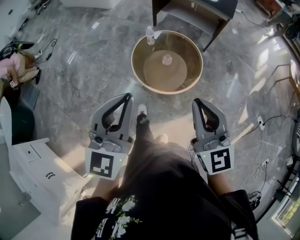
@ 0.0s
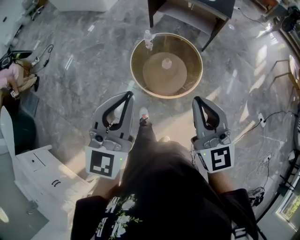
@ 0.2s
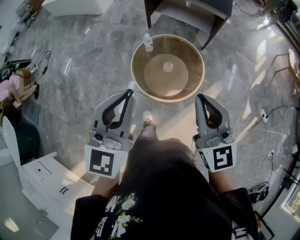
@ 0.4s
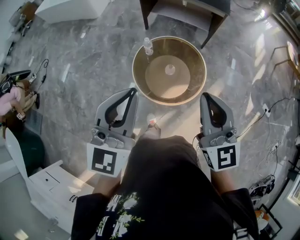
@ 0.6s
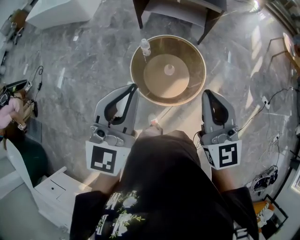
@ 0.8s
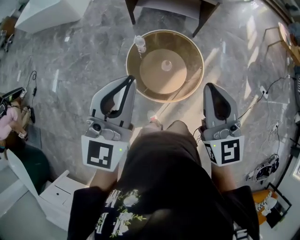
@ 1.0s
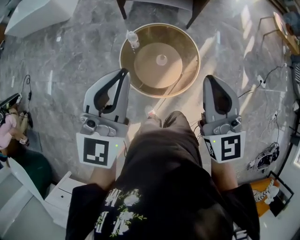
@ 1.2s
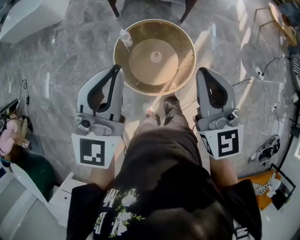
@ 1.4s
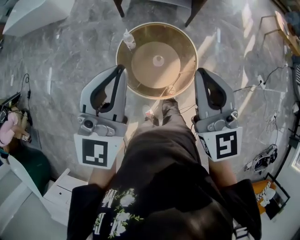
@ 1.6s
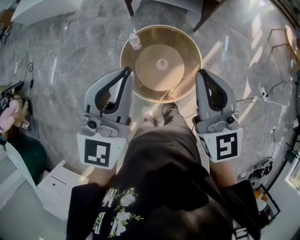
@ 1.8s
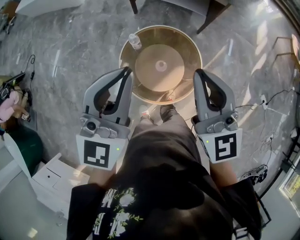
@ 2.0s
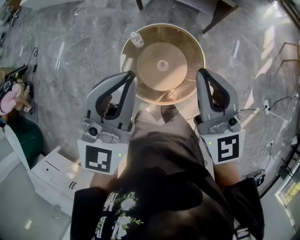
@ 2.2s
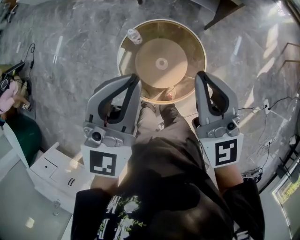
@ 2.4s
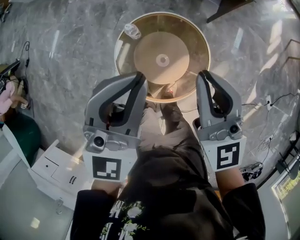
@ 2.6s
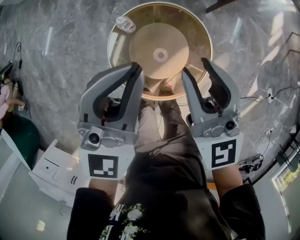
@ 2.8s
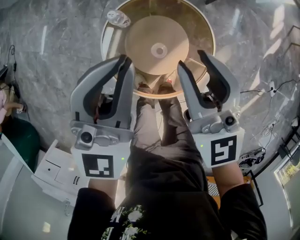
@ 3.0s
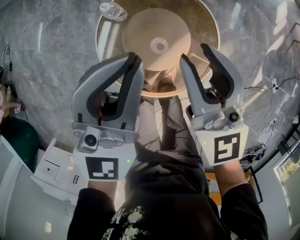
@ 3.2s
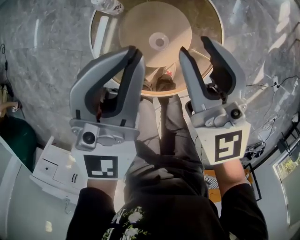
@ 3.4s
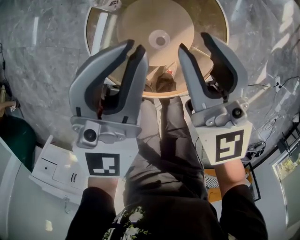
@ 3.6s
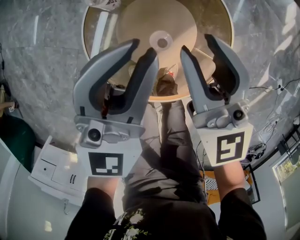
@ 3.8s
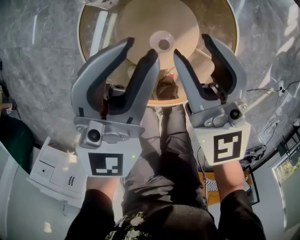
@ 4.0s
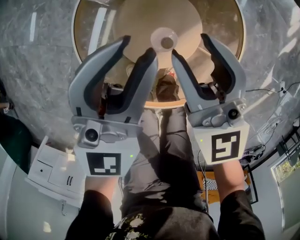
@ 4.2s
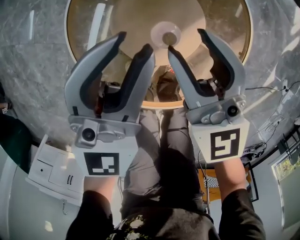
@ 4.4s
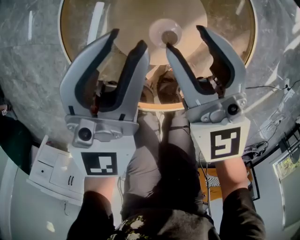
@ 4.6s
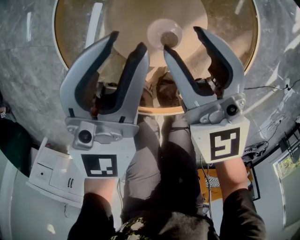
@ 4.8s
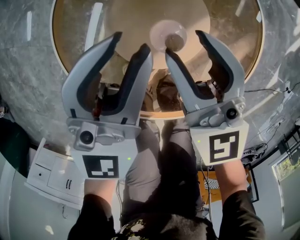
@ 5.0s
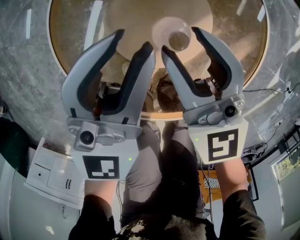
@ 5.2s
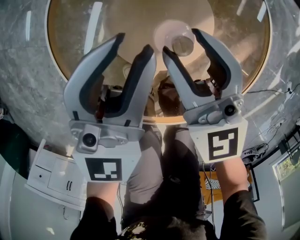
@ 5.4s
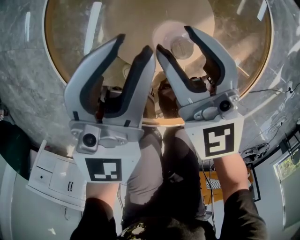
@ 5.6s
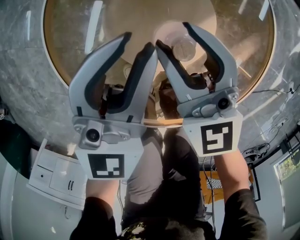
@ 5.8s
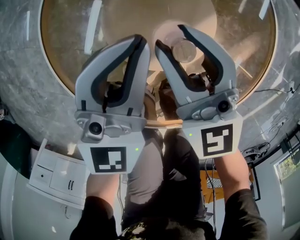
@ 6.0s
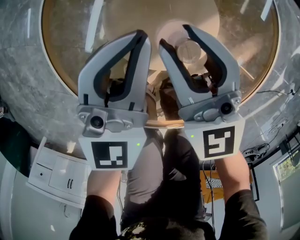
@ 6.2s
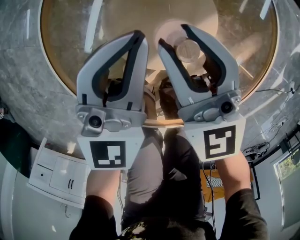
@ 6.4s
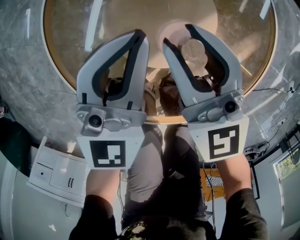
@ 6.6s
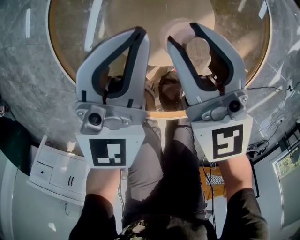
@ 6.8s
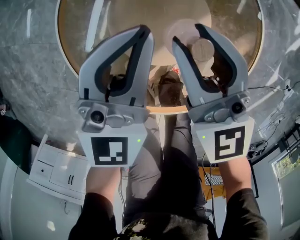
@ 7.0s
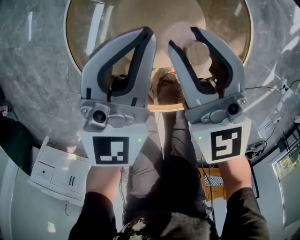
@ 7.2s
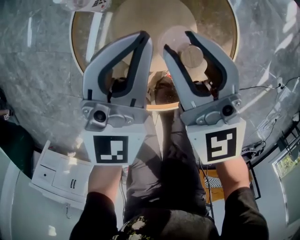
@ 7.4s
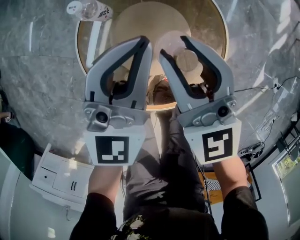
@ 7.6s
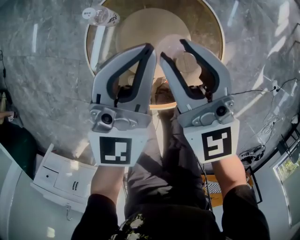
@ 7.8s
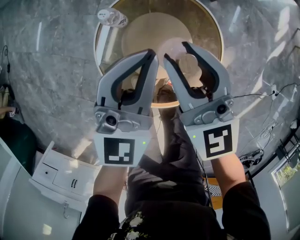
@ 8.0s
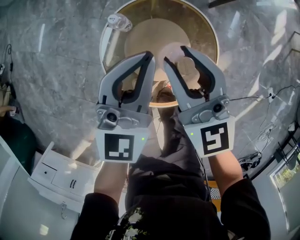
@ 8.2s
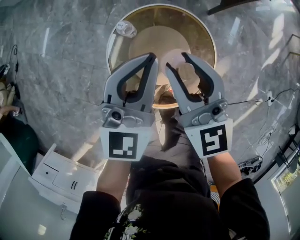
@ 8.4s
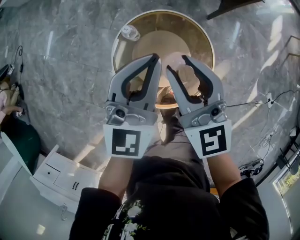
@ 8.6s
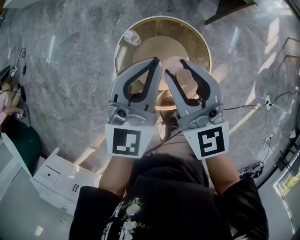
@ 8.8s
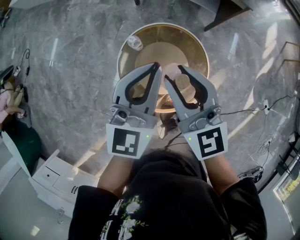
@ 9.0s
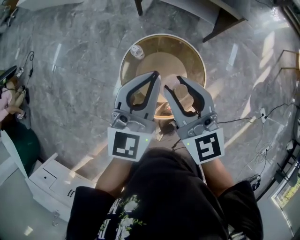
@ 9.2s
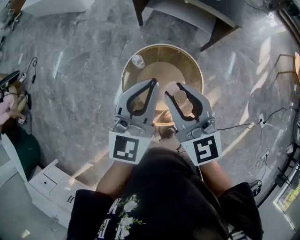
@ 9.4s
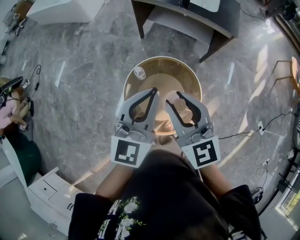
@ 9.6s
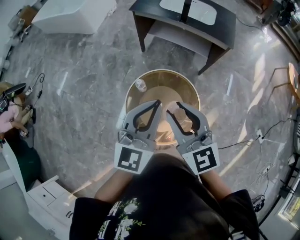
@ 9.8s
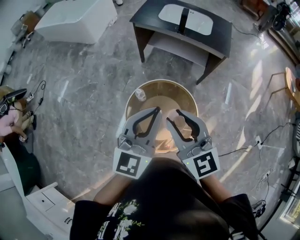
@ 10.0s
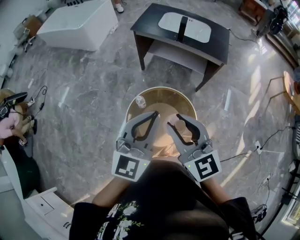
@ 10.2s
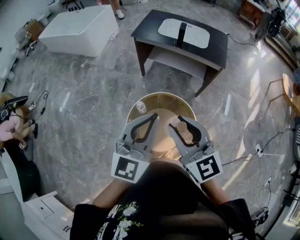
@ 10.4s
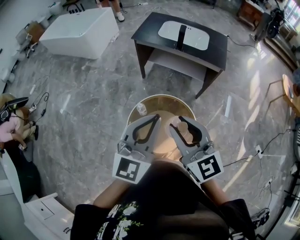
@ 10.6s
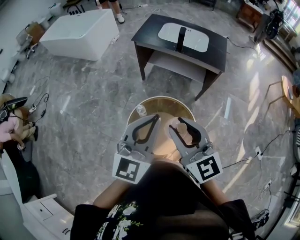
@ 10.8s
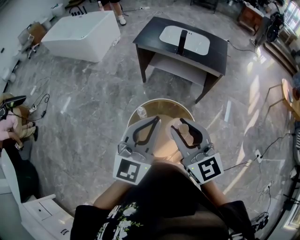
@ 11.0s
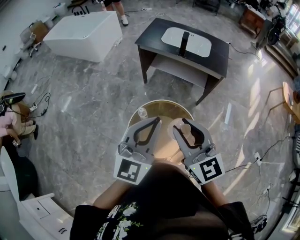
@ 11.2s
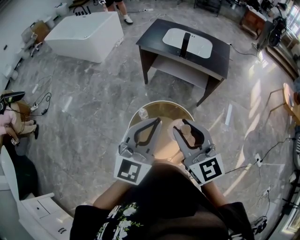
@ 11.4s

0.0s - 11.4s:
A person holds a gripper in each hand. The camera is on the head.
0.0s - 1.4s: The two grippers go about 30 cm forward. The right gripper turns by approximately 20 degrees, while the left gripper swivels some 20 degrees.
1.4s - 2.8s: The left gripper goes about 25 cm forward, downward and to the right. The right gripper is displaced forward and downward by about 25 cm, and opens its fingers.
2.8s - 4.2s: The two grippers go some 35 cm downward. The left gripper opens its fingers.
4.2s - 5.6s: The two grippers go some 10 cm downward.
5.6s - 7.2s: The right gripper heads upward, covering approximately 10 cm. The left gripper travels upward by about 10 cm, and closes.
7.2s - 8.6s: Both grippers move upward, roughly 35 cm.
8.6s - 10.0s: The grippers both shift upward and backward by some 25 cm.
10.0s - 11.4s: The grippers move only a little.

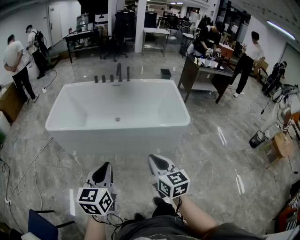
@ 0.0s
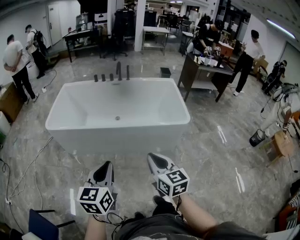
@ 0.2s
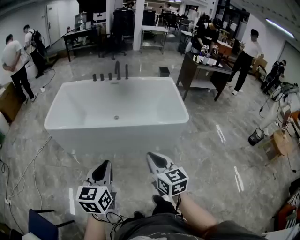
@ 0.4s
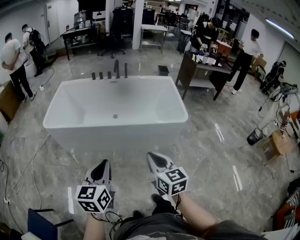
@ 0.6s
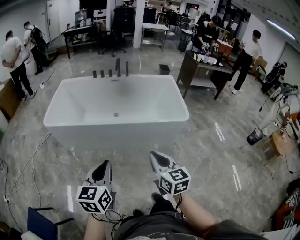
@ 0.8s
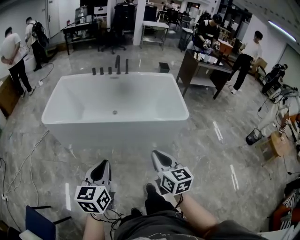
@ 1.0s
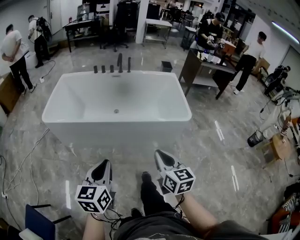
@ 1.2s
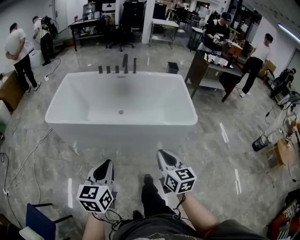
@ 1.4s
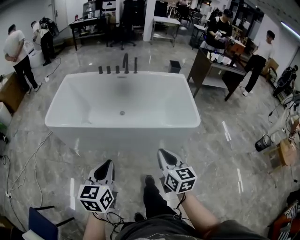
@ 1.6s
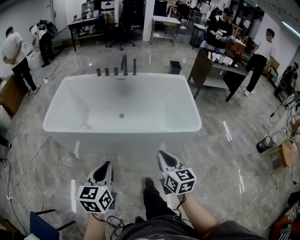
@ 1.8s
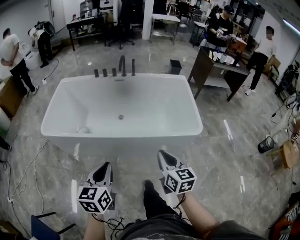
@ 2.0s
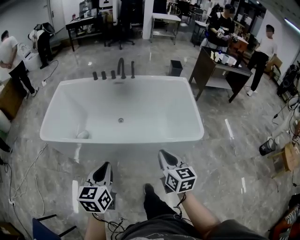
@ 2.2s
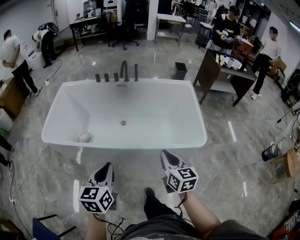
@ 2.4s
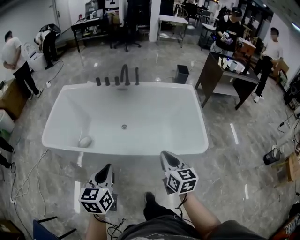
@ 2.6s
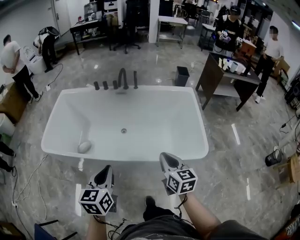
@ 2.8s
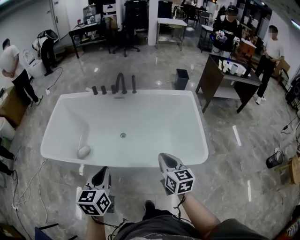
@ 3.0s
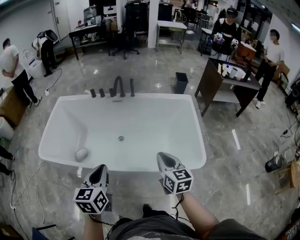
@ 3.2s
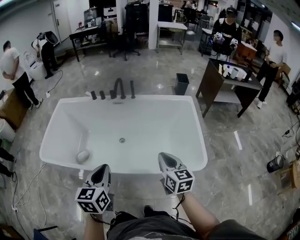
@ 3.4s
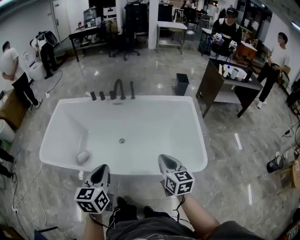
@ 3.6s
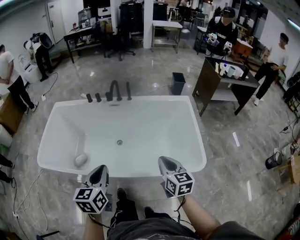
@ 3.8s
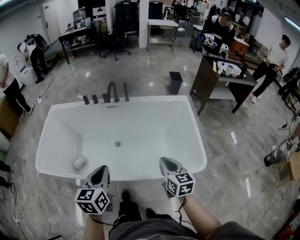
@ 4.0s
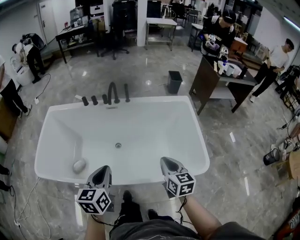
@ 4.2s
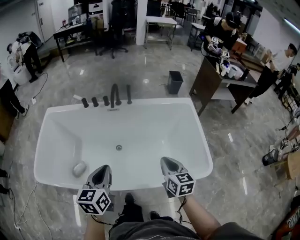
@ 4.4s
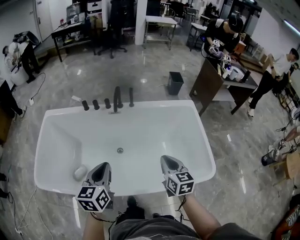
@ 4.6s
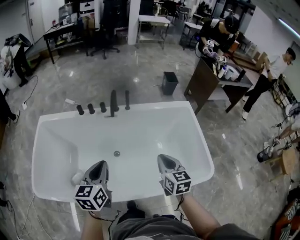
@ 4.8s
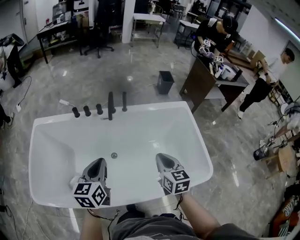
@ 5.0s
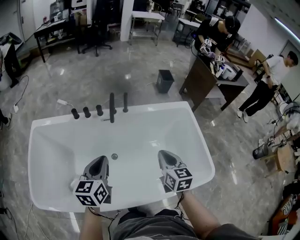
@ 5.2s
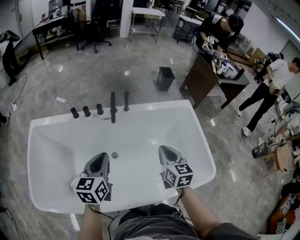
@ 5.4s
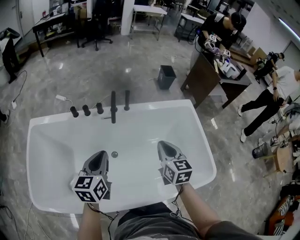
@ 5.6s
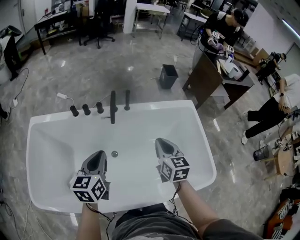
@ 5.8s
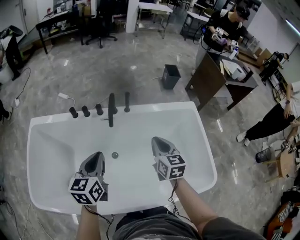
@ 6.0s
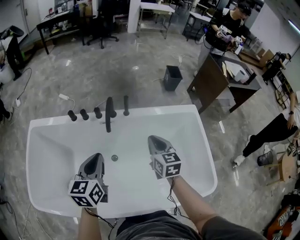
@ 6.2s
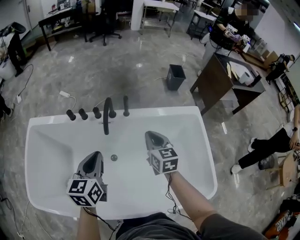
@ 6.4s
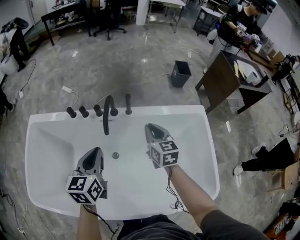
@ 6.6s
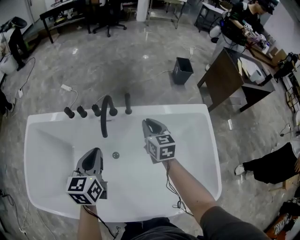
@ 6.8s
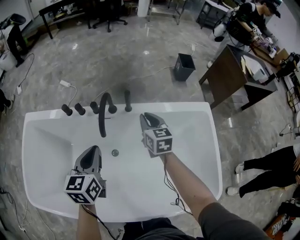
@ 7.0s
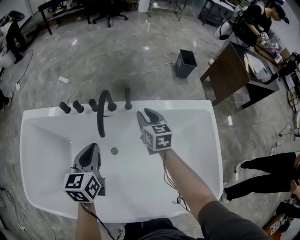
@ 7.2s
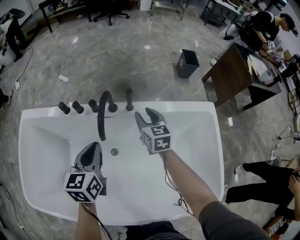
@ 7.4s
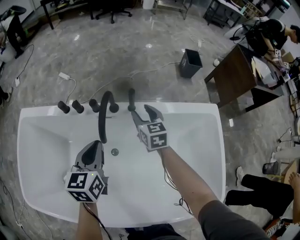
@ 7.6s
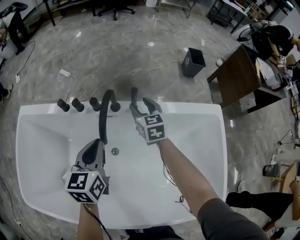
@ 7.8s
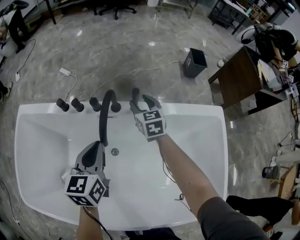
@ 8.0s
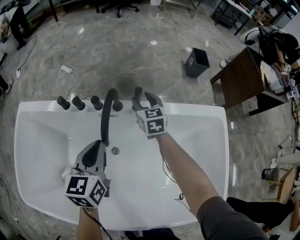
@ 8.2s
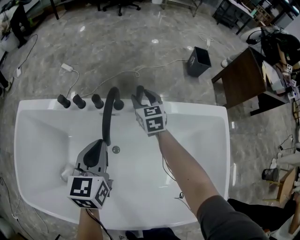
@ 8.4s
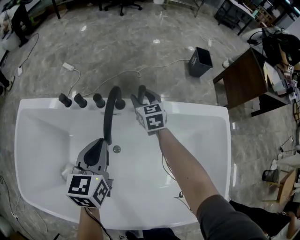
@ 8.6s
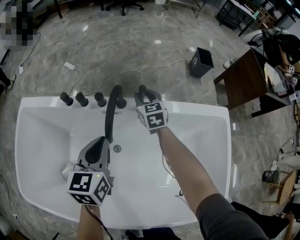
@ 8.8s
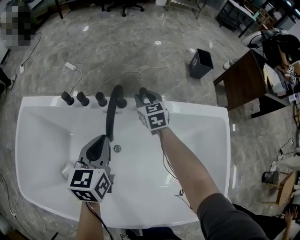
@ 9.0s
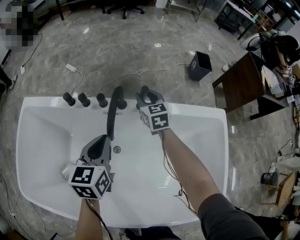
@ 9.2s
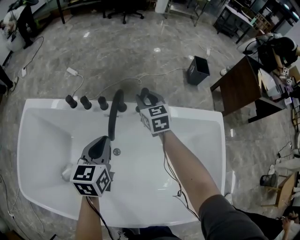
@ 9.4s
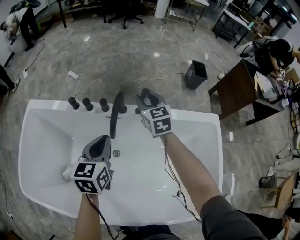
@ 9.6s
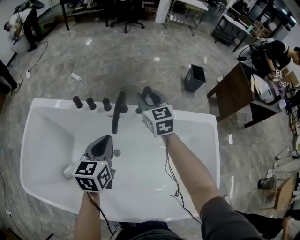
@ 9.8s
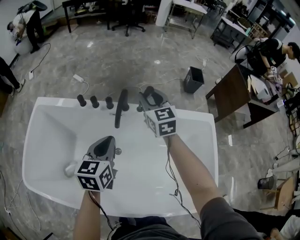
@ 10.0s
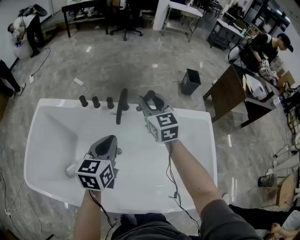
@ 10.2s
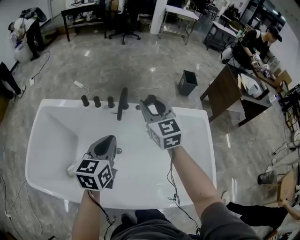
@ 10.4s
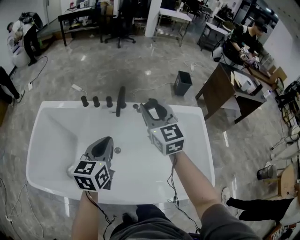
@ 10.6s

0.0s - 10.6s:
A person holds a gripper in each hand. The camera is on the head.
0.0s - 1.6s: The two grippers go about 10 cm forward.
1.6s - 3.0s: Both grippers move forward, about 30 cm.
3.0s - 4.6s: The grippers both shift forward by roughly 20 cm.
4.6s - 6.0s: The grippers both shift forward by approximately 20 cm.
6.0s - 7.6s: The right gripper heads forward and downward, covering roughly 30 cm, and opens, while the left gripper shifts about 20 cm forward and downward.
7.6s - 9.0s: The right gripper heads forward, covering roughly 10 cm.
9.0s - 10.6s: The right gripper heads upward and backward, covering approximately 50 cm, and swivels some 20 degrees. Meanwhile the left gripper heads backward and upward, covering about 25 cm.

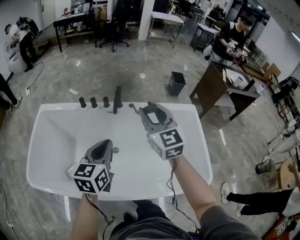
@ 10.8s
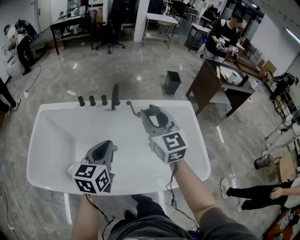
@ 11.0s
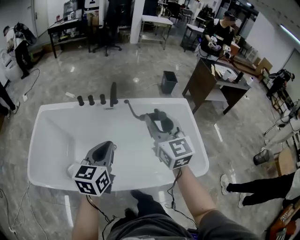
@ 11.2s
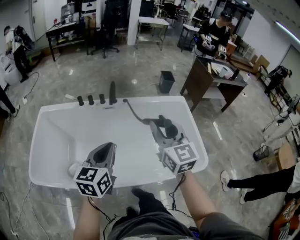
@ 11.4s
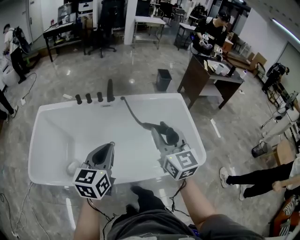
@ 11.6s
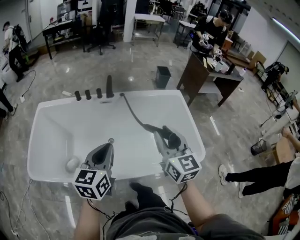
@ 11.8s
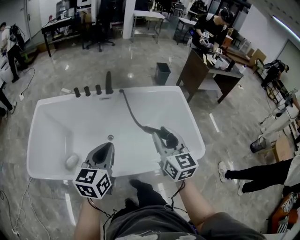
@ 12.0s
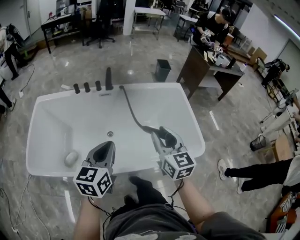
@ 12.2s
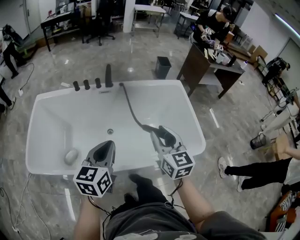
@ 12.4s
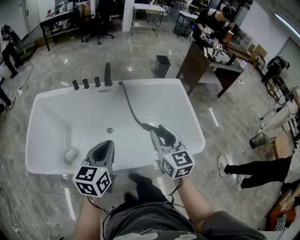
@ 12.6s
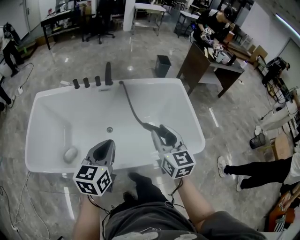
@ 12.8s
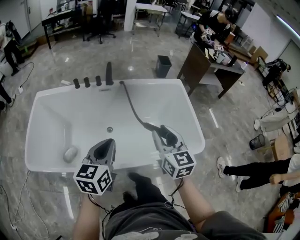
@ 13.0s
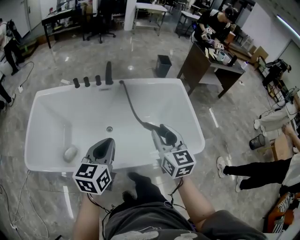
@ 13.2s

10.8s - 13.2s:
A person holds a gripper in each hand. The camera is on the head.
10.8s - 12.0s: The two grippers go some 25 cm backward.
12.0s - 13.2s: There are only small adjustments of the grippers.
